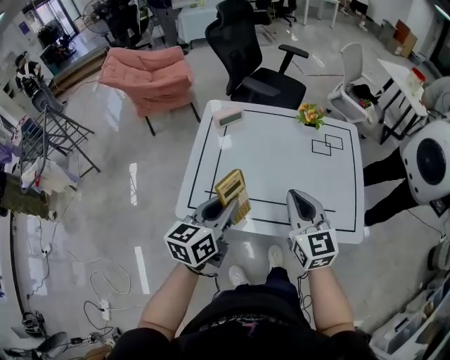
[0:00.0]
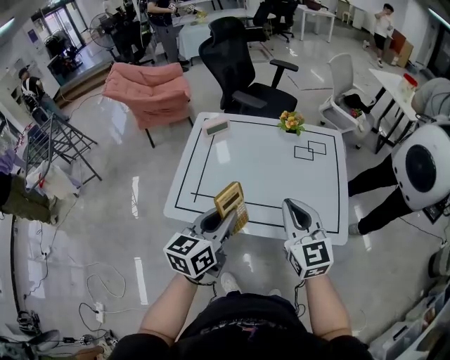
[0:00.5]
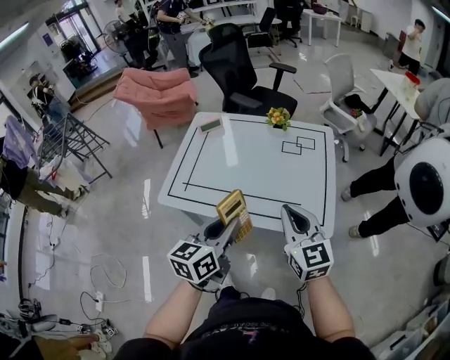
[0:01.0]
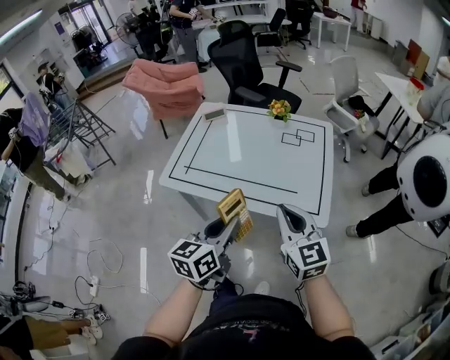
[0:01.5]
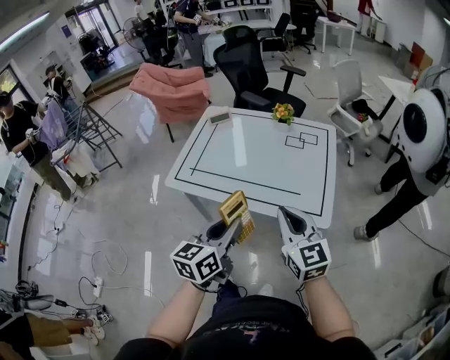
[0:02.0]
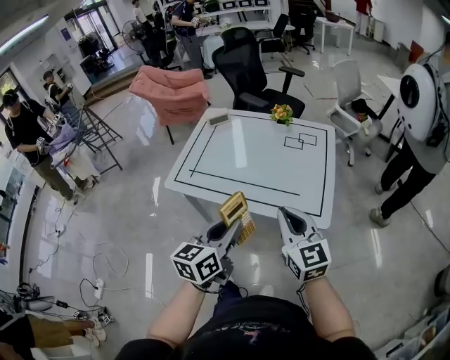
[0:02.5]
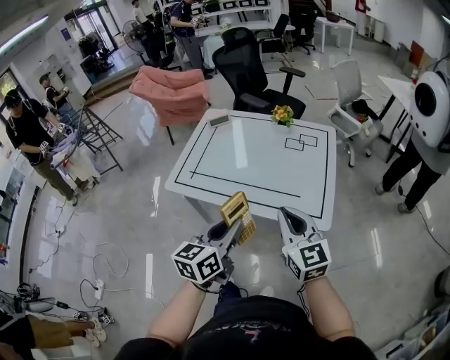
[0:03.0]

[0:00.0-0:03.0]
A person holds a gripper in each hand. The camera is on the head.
0:00.0 to 0:01.5: The right gripper goes approximately 25 cm backward and to the right. Meanwhile the left gripper travels to the right and backward by roughly 30 cm.
0:01.5 to 0:03.0: The grippers make only small movements.

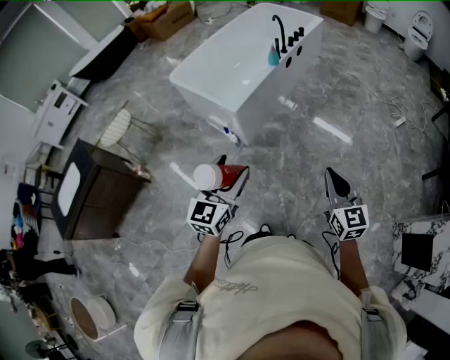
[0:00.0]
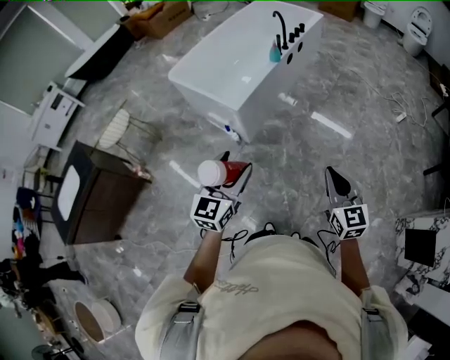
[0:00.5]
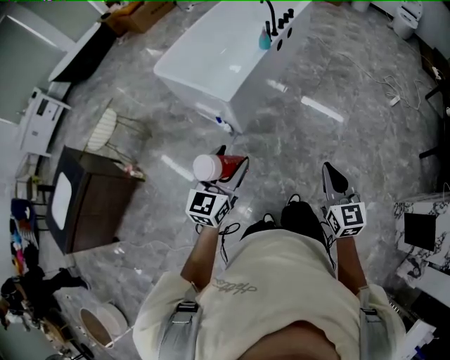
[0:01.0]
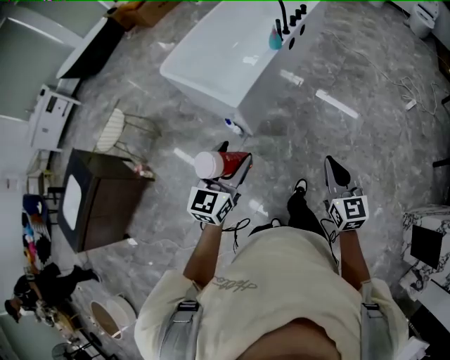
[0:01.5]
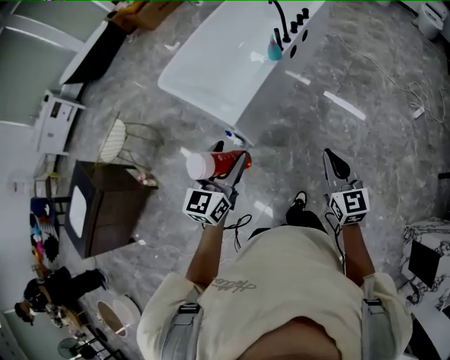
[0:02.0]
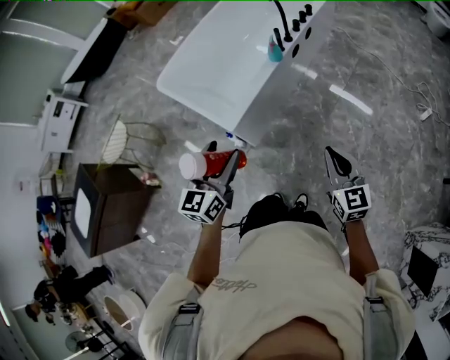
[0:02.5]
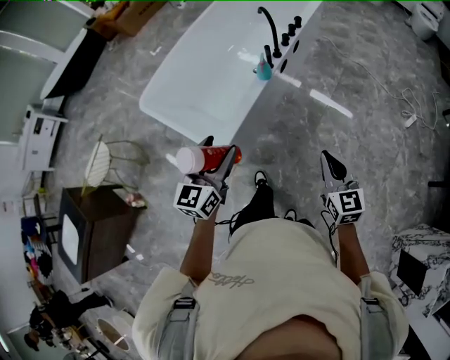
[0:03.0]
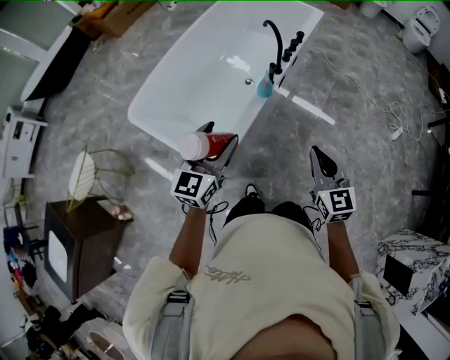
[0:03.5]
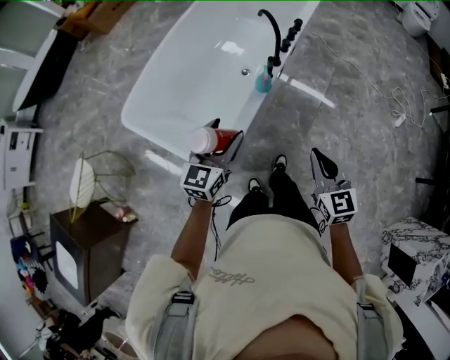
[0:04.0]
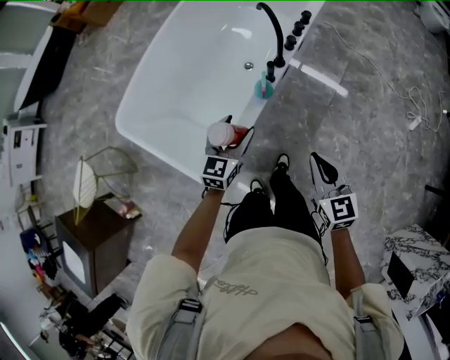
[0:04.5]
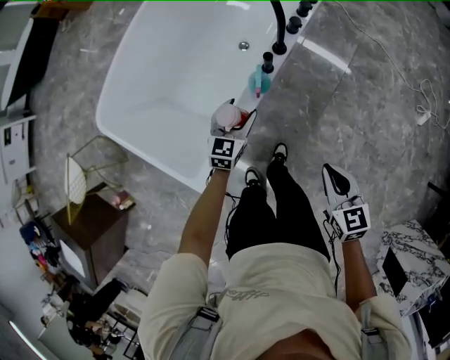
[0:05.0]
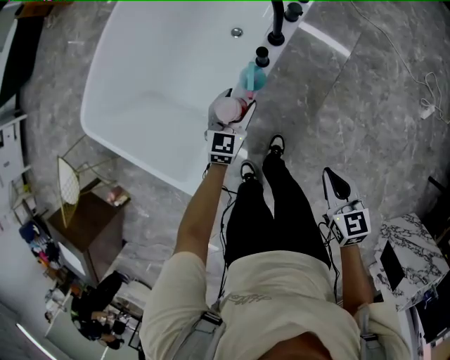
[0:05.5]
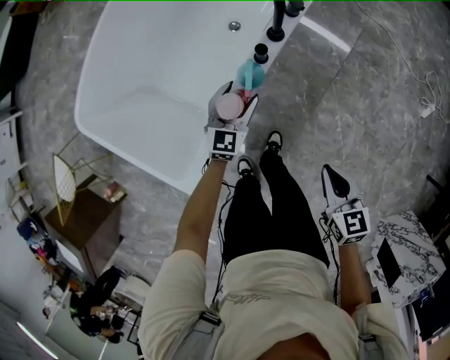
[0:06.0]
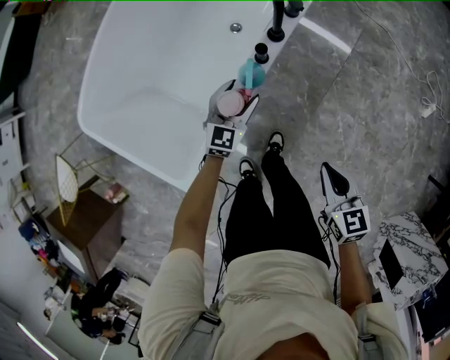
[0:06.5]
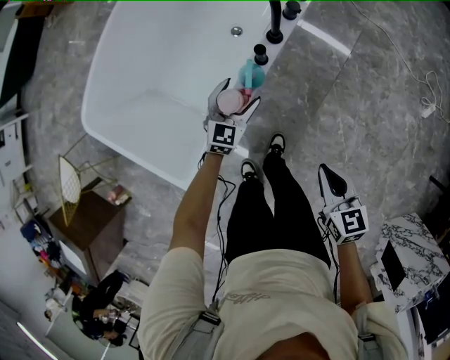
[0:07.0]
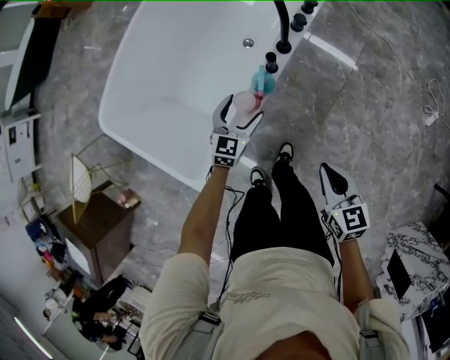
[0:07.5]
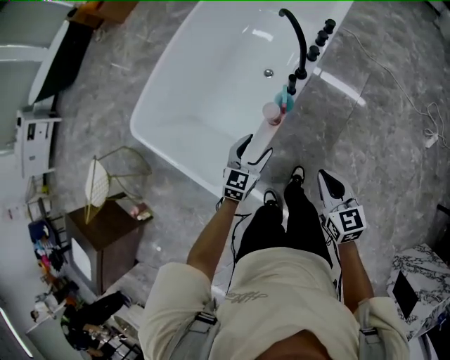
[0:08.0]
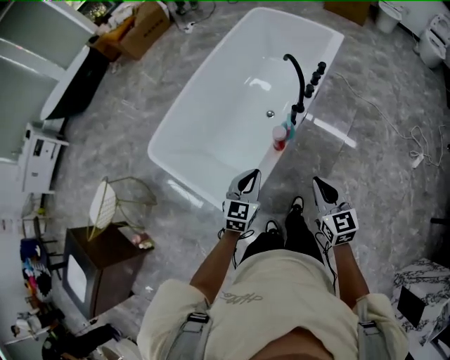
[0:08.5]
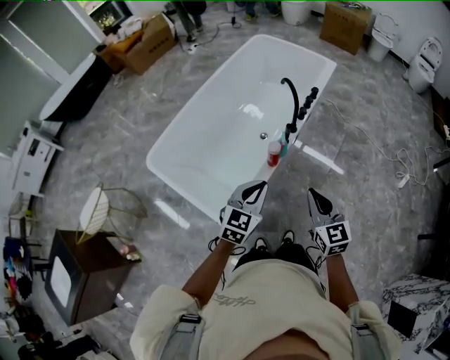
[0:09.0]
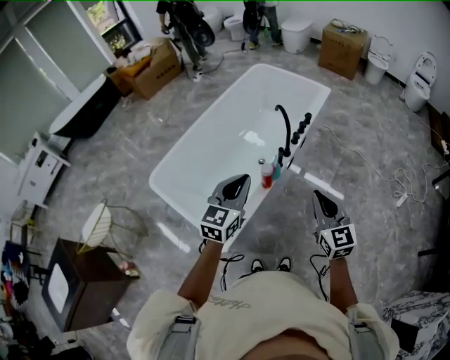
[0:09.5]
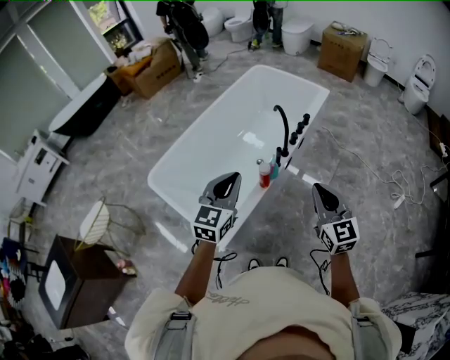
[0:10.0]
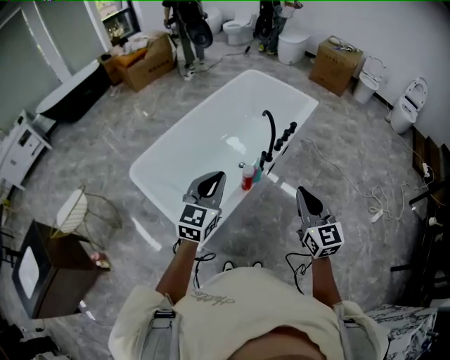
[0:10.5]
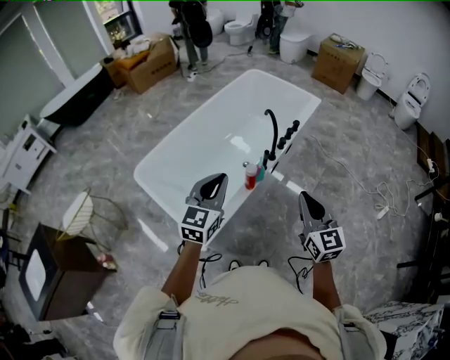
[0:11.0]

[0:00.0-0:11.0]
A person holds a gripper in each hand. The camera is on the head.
0:00.0 to 0:02.0: Both grippers move forward, approximately 25 cm.
0:02.0 to 0:03.5: The grippers both shift forward by some 30 cm.
0:03.5 to 0:05.5: The left gripper heads downward and forward, covering some 50 cm, and changes its angle by approximately 20 degrees. The right gripper shifts approximately 25 cm downward and forward, and changes its angle by approximately 30 degrees.
0:05.5 to 0:07.5: The grippers make only small movements.
0:07.5 to 0:09.0: The right gripper travels upward and to the left by about 20 cm, and changes its angle by approximately 30 degrees, while the left gripper is displaced upward and backward by some 35 cm, and closes its fingers.
0:09.0 to 0:11.0: The left gripper travels upward by roughly 10 cm, while the right gripper is displaced upward and to the right by approximately 10 cm.

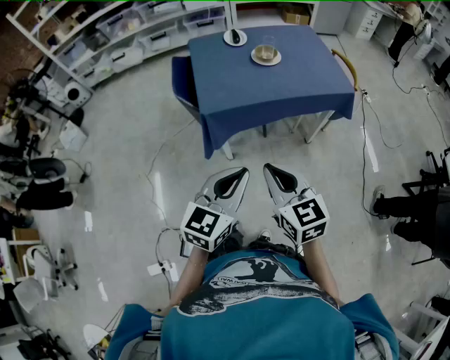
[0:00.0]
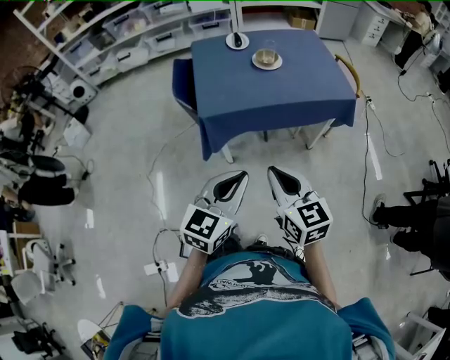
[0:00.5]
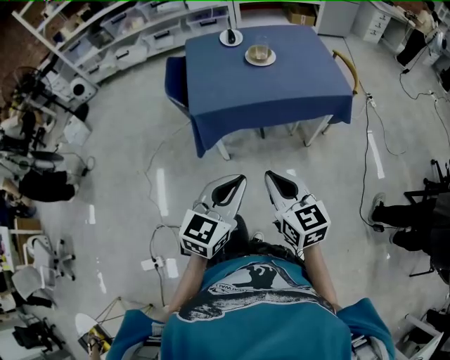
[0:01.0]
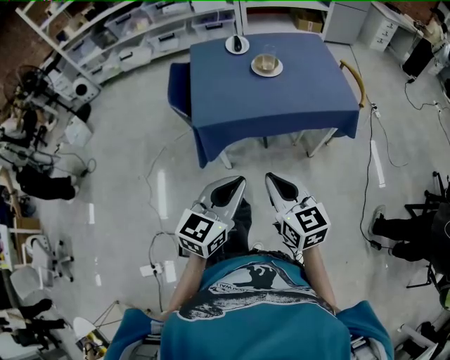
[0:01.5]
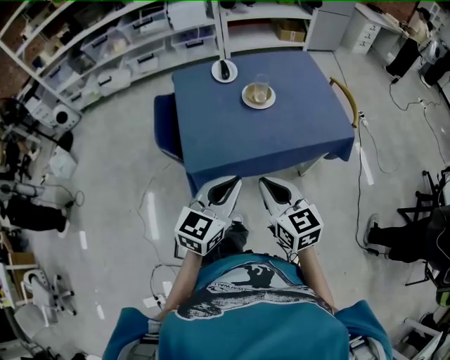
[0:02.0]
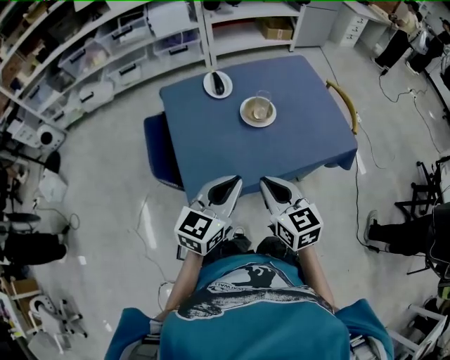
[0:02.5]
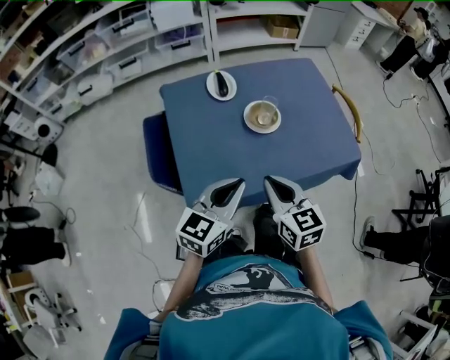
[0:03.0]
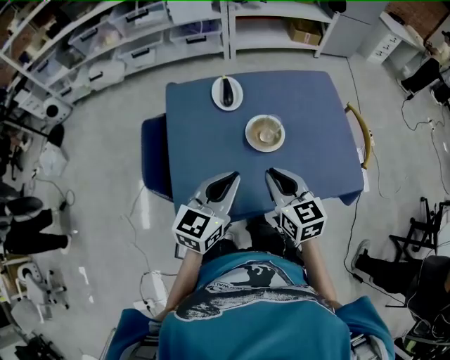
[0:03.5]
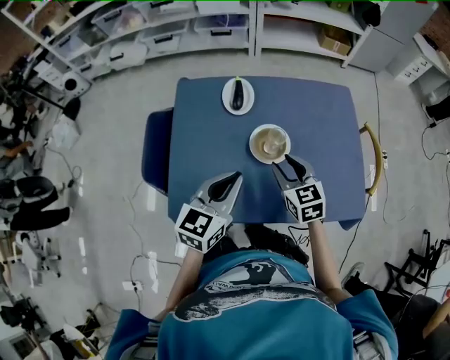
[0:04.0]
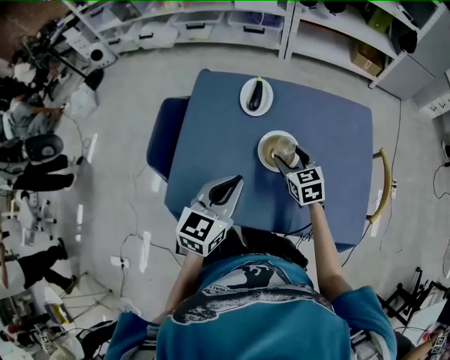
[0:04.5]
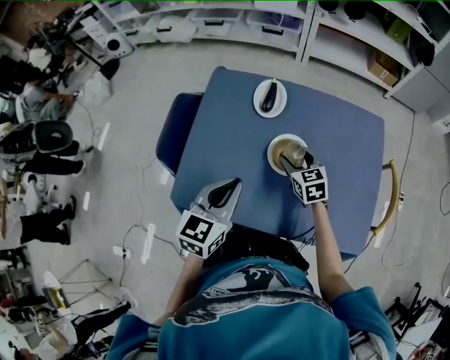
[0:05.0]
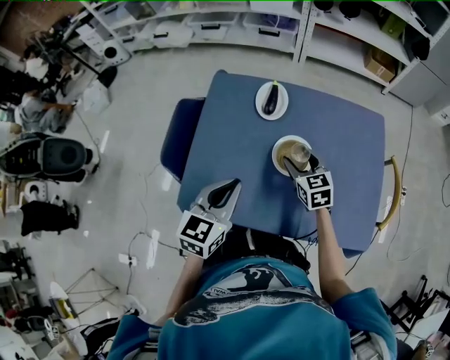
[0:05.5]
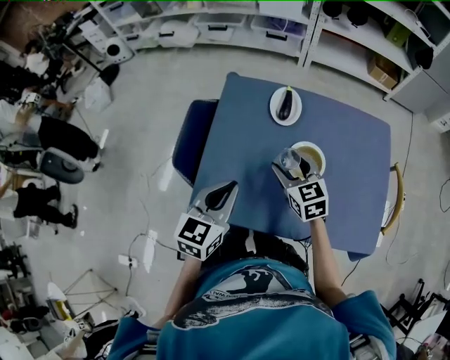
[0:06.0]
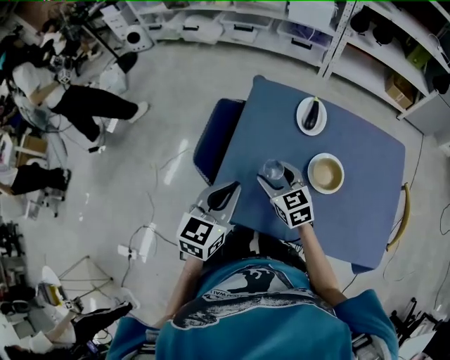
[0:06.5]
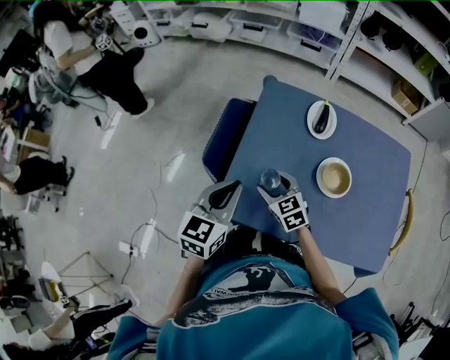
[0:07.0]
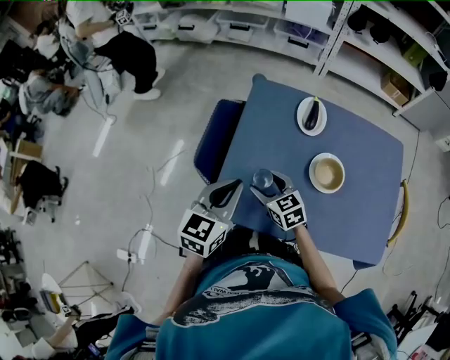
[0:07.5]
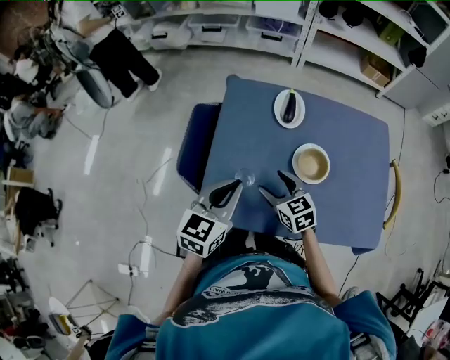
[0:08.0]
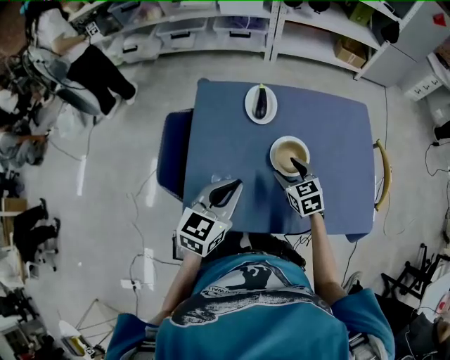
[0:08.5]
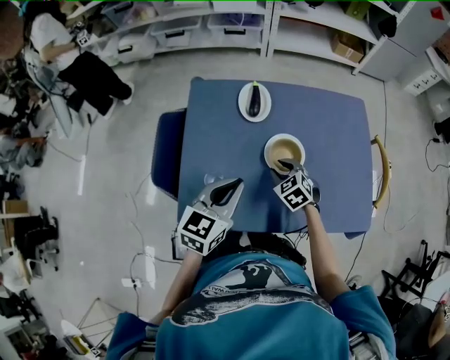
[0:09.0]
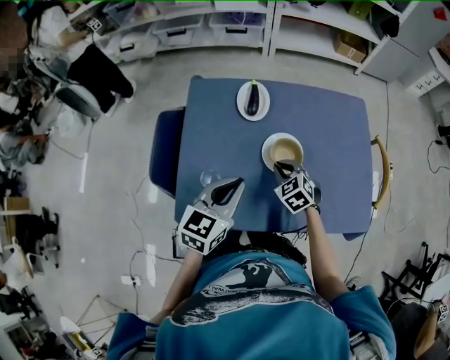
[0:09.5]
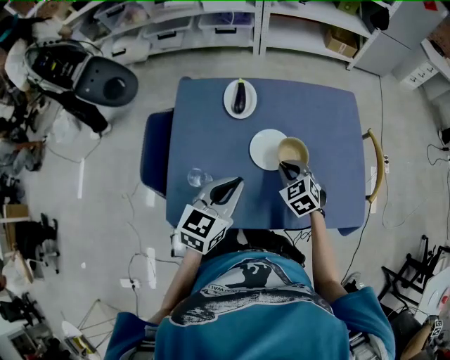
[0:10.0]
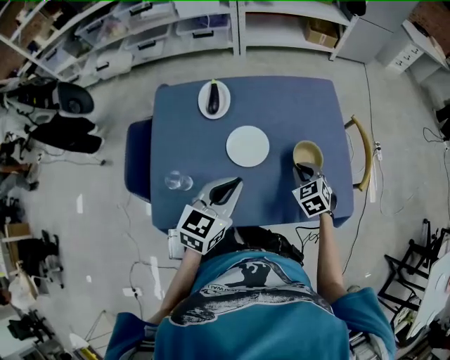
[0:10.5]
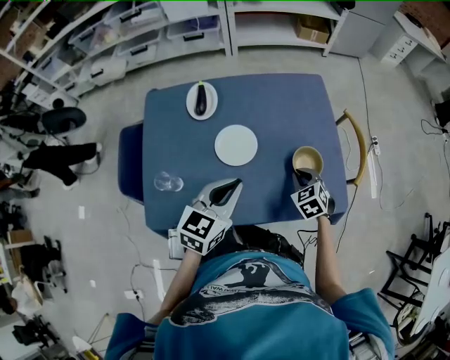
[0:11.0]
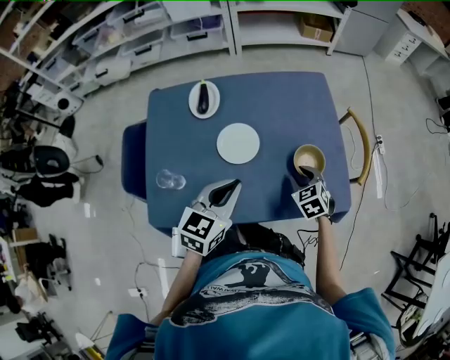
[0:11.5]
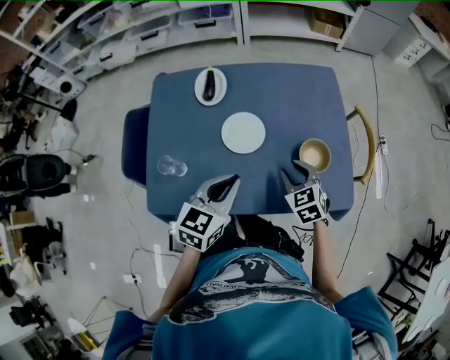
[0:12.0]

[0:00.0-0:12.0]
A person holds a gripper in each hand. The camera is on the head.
0:00.0 to 0:02.0: Both grippers move forward, approximately 20 cm.
0:02.0 to 0:04.0: The two grippers go about 30 cm forward. The right gripper opens its fingers.
0:04.0 to 0:06.0: The right gripper heads to the left and forward, covering approximately 10 cm, and opens. The left gripper goes roughly 10 cm to the left.
0:06.0 to 0:08.0: The right gripper moves to the left and downward, some 10 cm.
0:08.0 to 0:10.0: The grippers both shift to the right by approximately 15 cm. The right gripper rotates some 30 degrees, and closes its fingers.
0:10.0 to 0:12.0: Both grippers travel together to the right, some 10 cm. The right gripper opens its fingers.

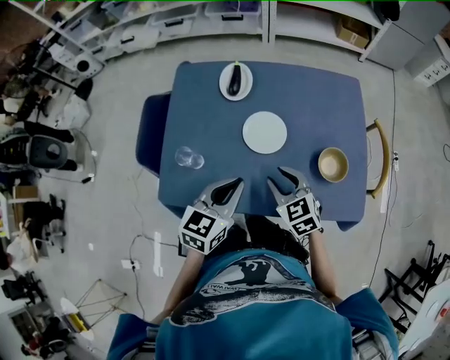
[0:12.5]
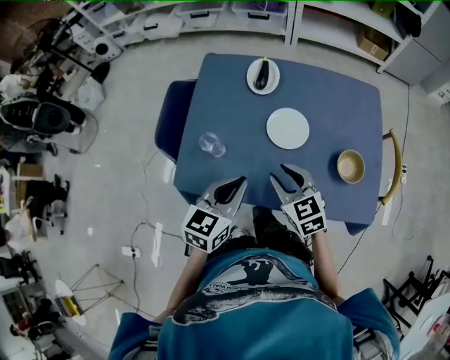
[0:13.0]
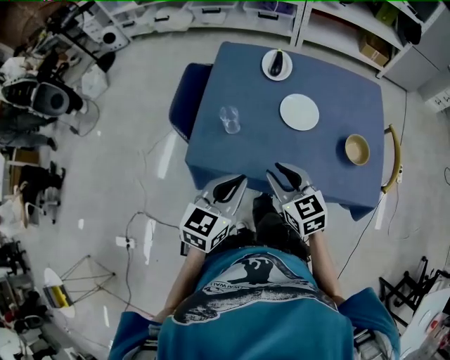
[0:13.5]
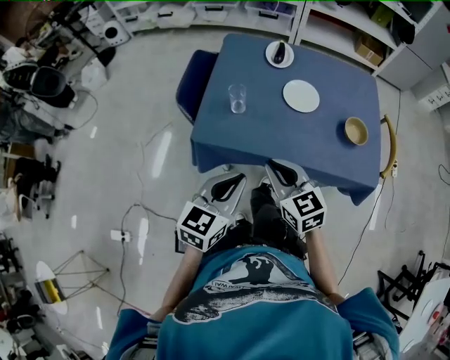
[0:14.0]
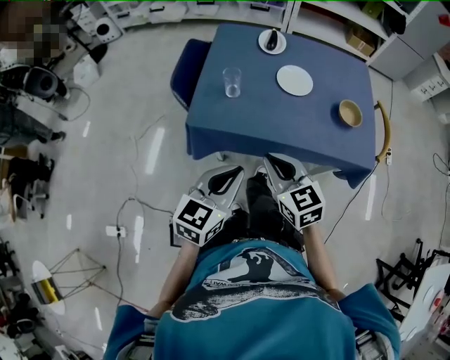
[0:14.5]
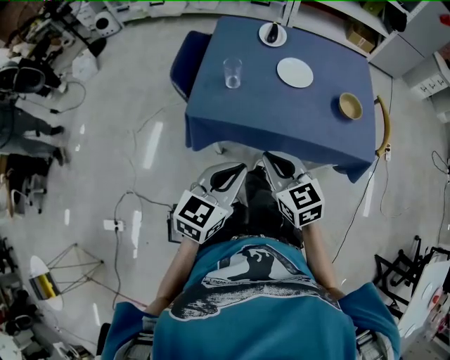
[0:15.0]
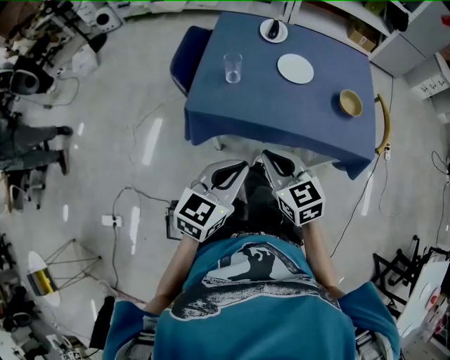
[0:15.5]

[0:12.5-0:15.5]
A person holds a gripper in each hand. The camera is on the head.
0:12.5 to 0:14.0: The right gripper goes about 25 cm backward, to the left and upward, and closes; the left gripper goes some 20 cm backward and to the left.
0:14.0 to 0:15.5: The grippers both shift backward by roughly 5 cm.
